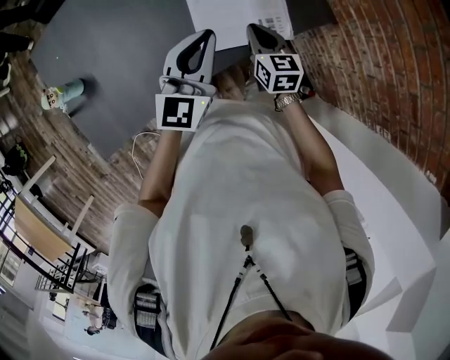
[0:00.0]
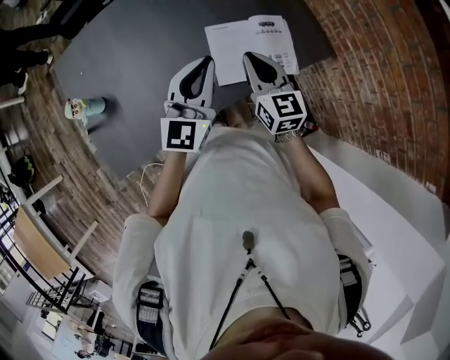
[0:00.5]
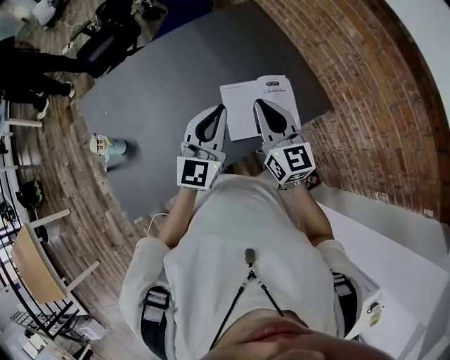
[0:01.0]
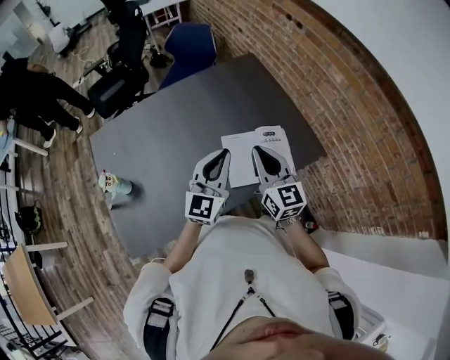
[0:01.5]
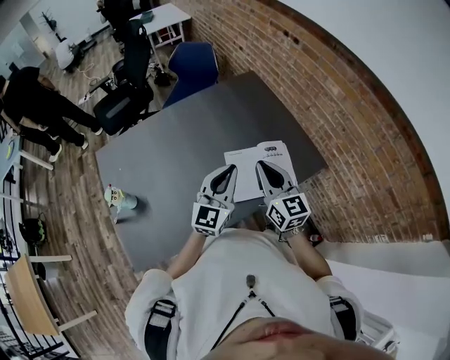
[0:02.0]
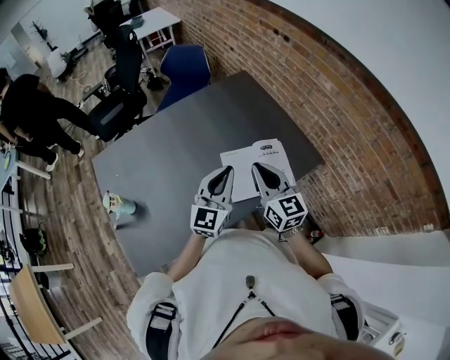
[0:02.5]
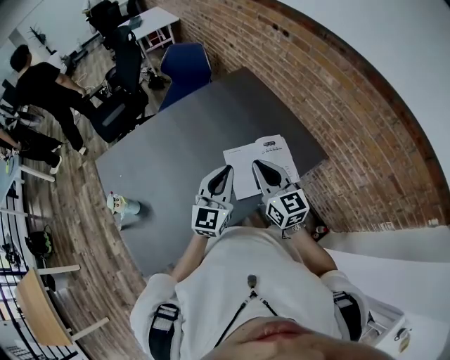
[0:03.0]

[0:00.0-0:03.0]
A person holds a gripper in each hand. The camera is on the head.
0:00.0 to 0:01.5: The left gripper travels upward and to the left by some 15 cm; the right gripper shifts approximately 25 cm upward, and swivels about 30 degrees.
0:01.5 to 0:03.0: The grippers stay close to where they were, moving slightly.

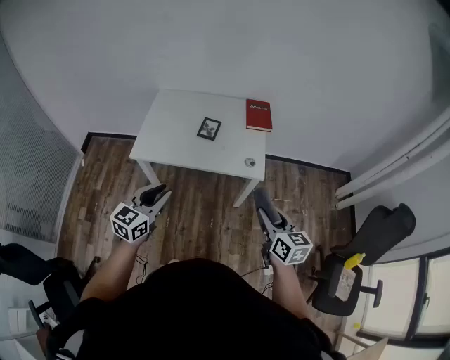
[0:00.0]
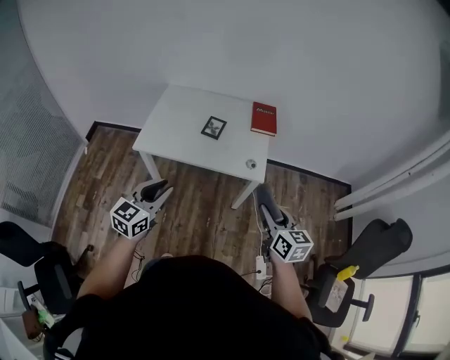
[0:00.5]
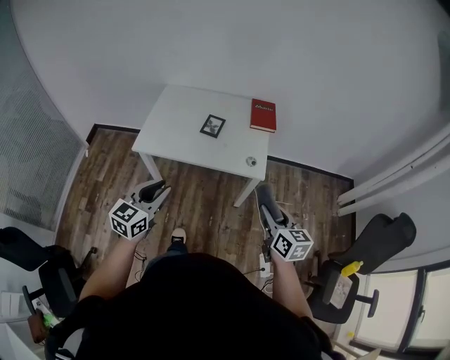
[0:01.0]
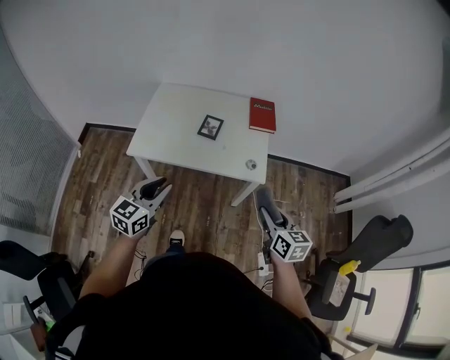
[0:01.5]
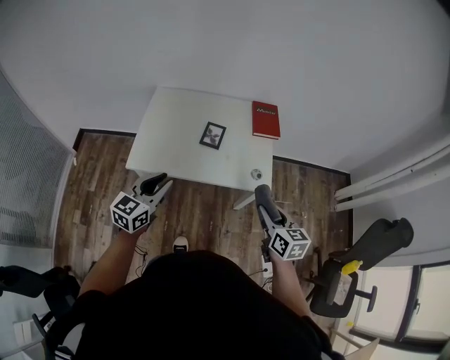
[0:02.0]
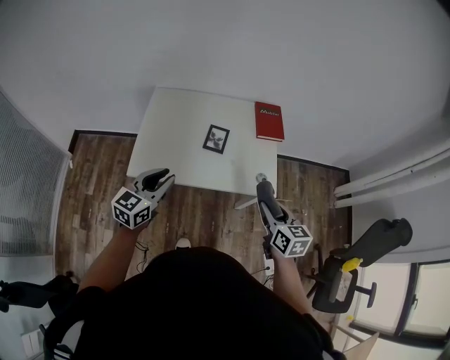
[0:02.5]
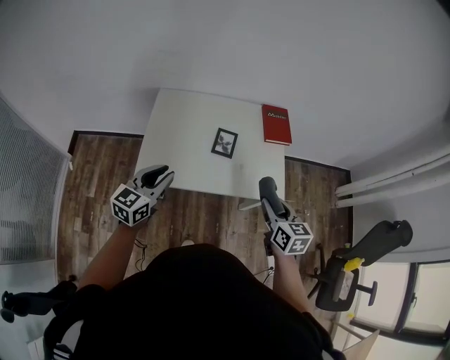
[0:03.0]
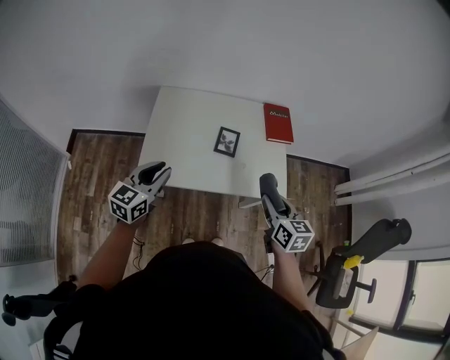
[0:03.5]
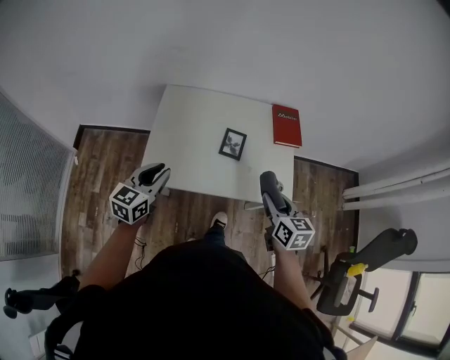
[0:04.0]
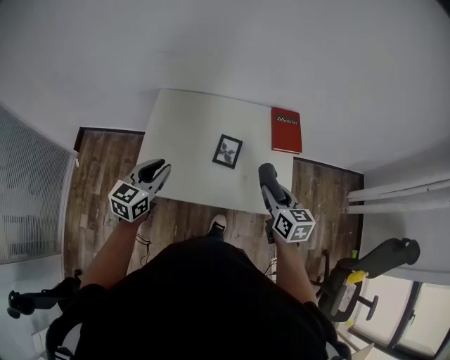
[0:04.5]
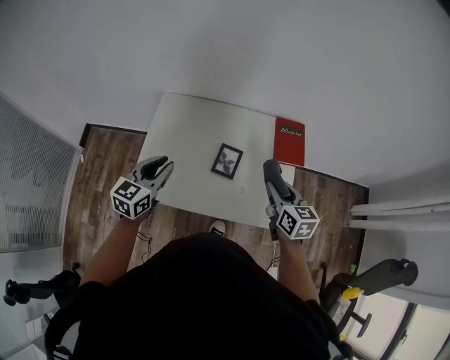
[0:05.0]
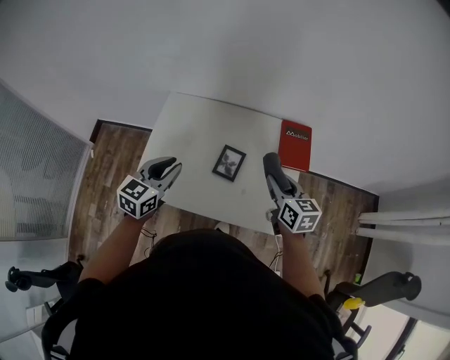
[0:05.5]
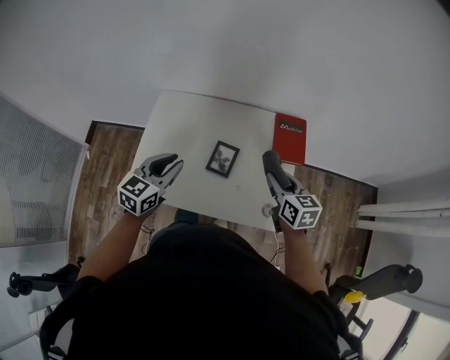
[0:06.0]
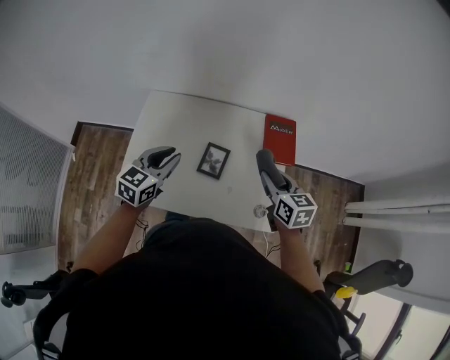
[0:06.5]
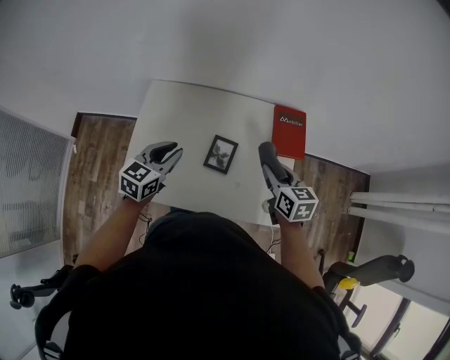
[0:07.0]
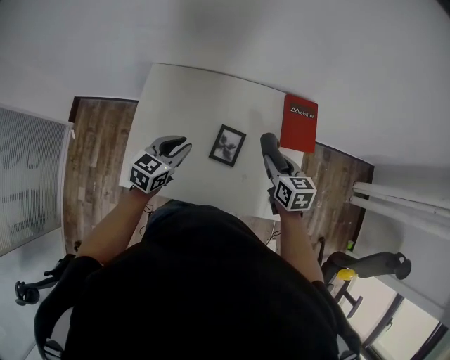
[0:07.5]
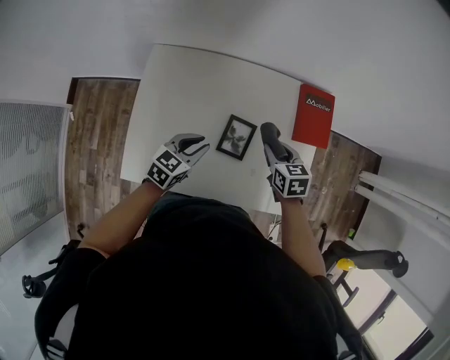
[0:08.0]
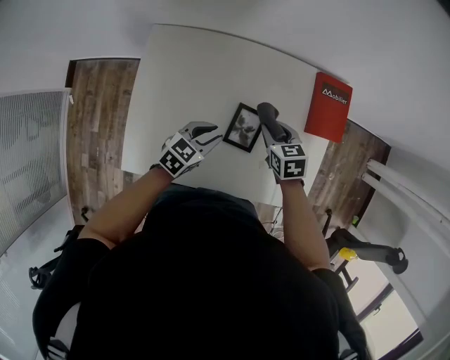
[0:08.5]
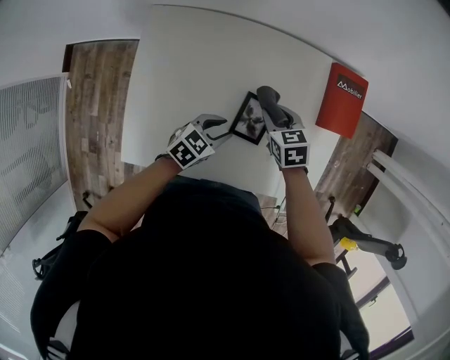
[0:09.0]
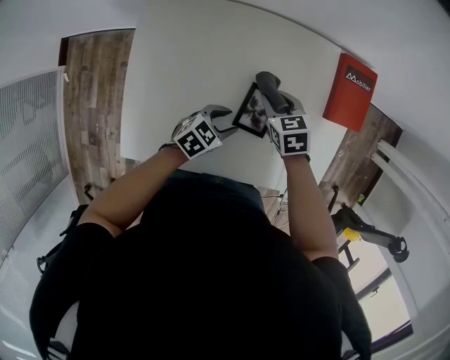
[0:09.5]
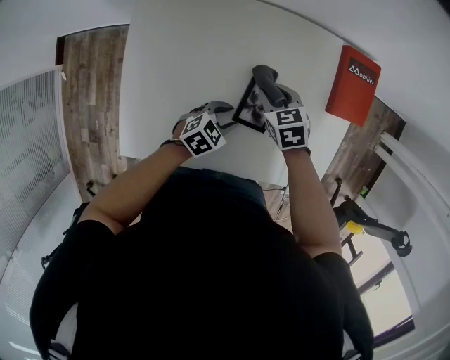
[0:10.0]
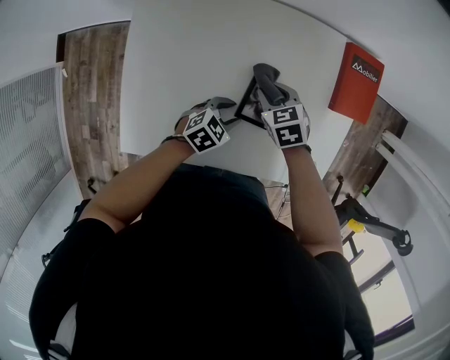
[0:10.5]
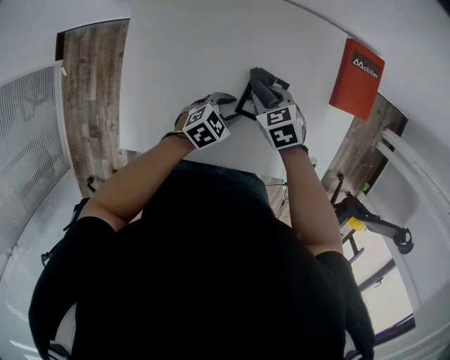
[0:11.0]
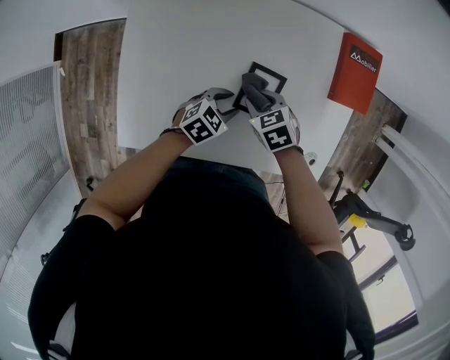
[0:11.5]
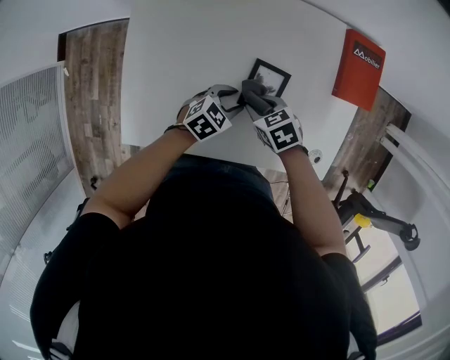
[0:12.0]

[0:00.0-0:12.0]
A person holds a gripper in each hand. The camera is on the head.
0:00.0 to 0:02.0: The left gripper heads forward, covering approximately 15 cm. Meanwhile the right gripper moves forward and to the left, roughly 15 cm.
0:02.0 to 0:04.0: The left gripper travels to the left and forward by roughly 20 cm, while the right gripper goes some 15 cm forward and to the left.
0:04.0 to 0:06.0: The grippers both shift forward and to the right by roughly 20 cm.
0:06.0 to 0:08.0: The right gripper moves downward, forward and to the left, about 20 cm, and changes its angle by some 20 degrees. The left gripper shifts some 20 cm downward and forward, and rotates approximately 20 degrees.
0:08.0 to 0:10.0: The left gripper is displaced downward by roughly 15 cm, and rotates roughly 20 degrees. The right gripper is displaced downward and to the left by approximately 15 cm.
0:10.0 to 0:12.0: The right gripper moves approximately 10 cm.

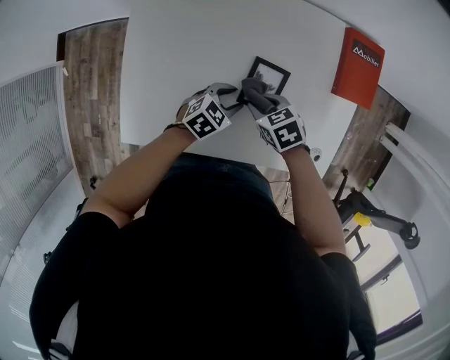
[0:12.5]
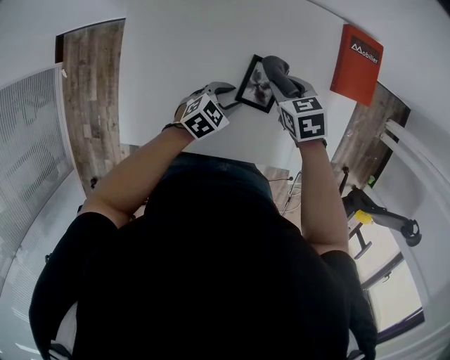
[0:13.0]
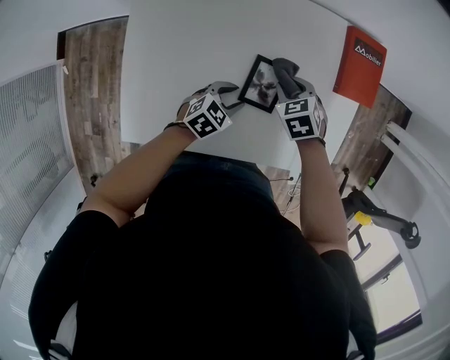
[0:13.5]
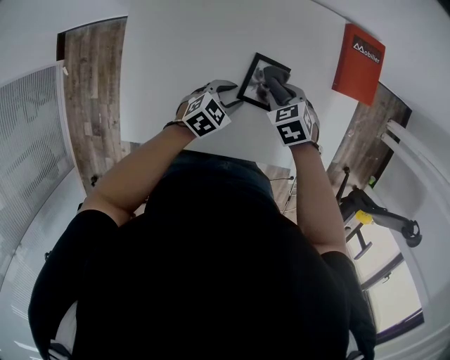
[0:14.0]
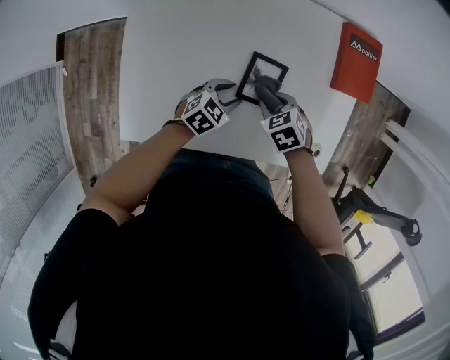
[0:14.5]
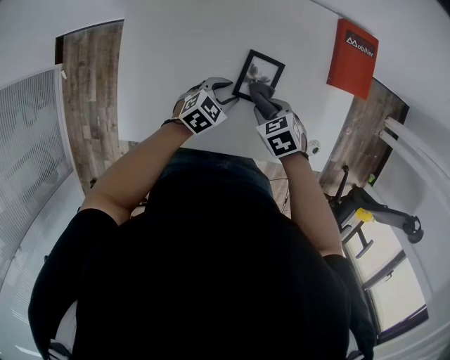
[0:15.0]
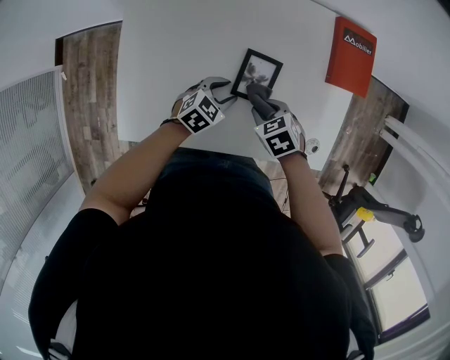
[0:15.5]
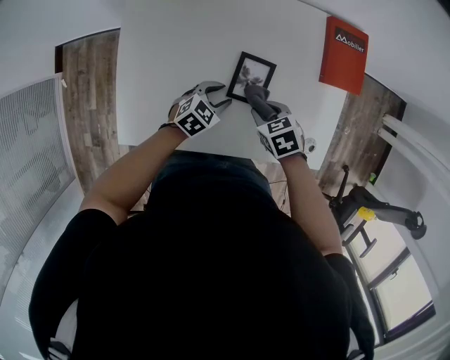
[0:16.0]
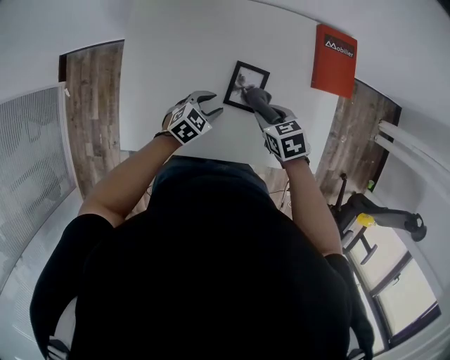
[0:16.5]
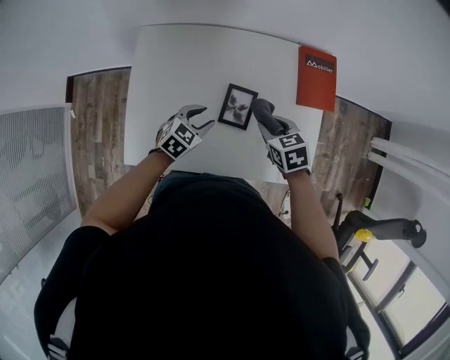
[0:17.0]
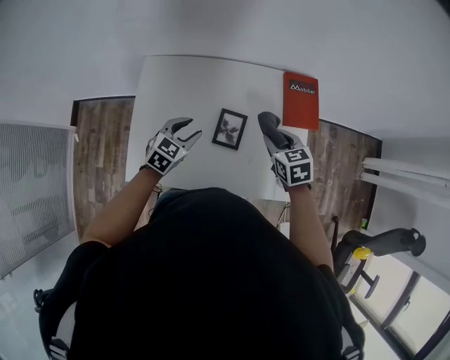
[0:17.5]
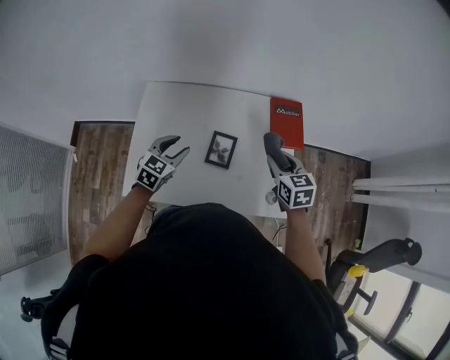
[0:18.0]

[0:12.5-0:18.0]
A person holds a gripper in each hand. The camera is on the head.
0:14.5 to 0:16.0: The grippers stay close to where they were, moving slightly.
0:16.0 to 0:18.0: Both grippers move upward, about 25 cm. The right gripper swivels approximately 40 degrees. Meanwhile the left gripper changes its angle by some 30 degrees.

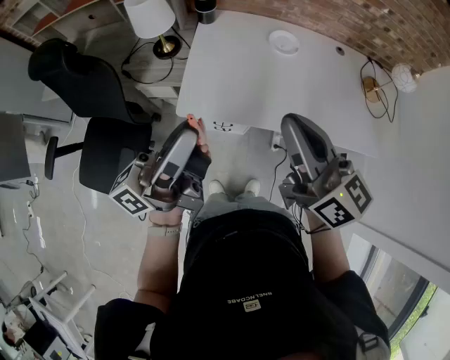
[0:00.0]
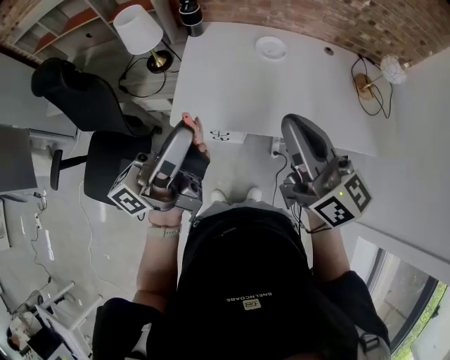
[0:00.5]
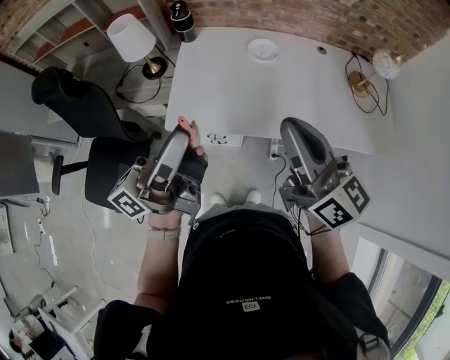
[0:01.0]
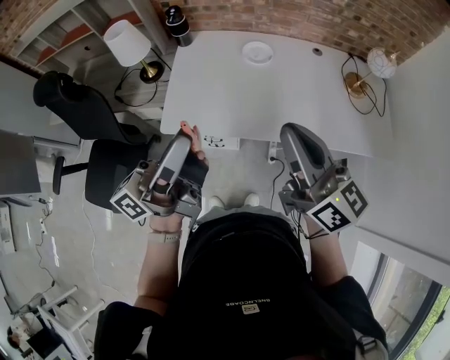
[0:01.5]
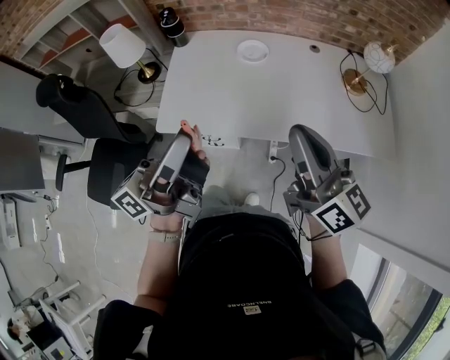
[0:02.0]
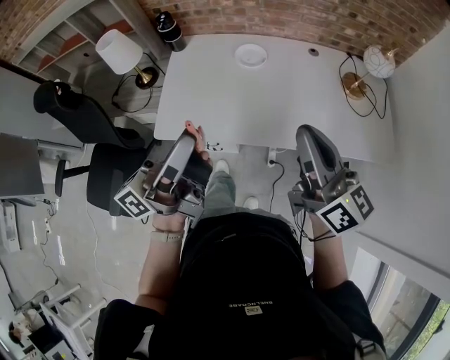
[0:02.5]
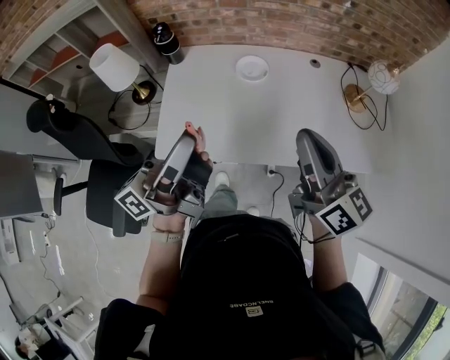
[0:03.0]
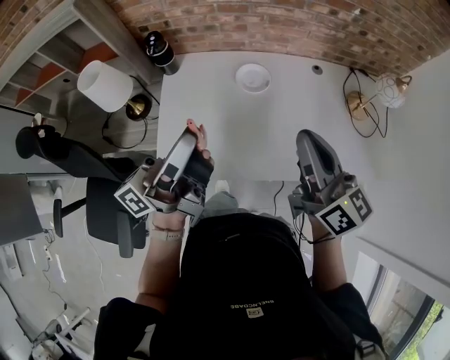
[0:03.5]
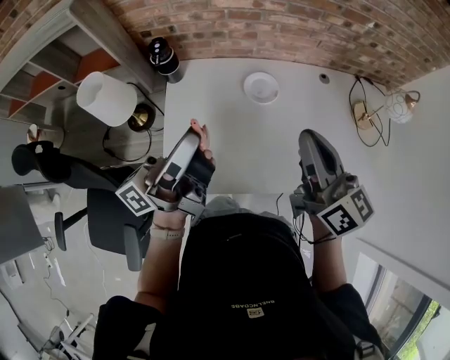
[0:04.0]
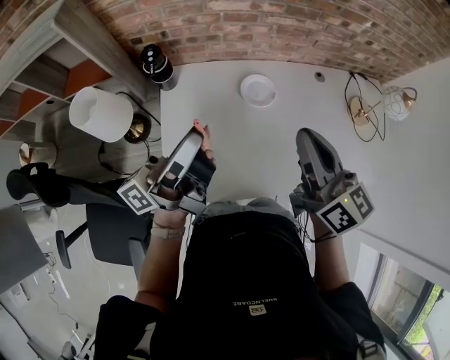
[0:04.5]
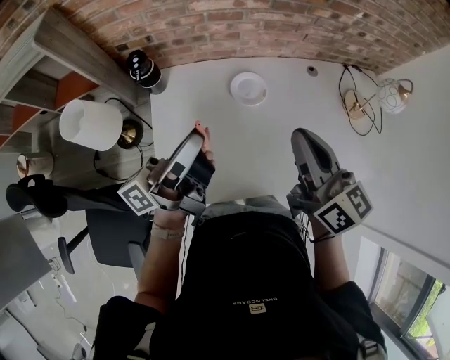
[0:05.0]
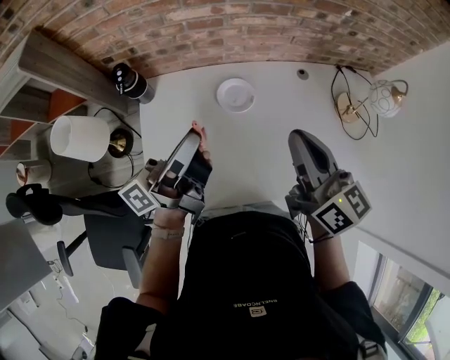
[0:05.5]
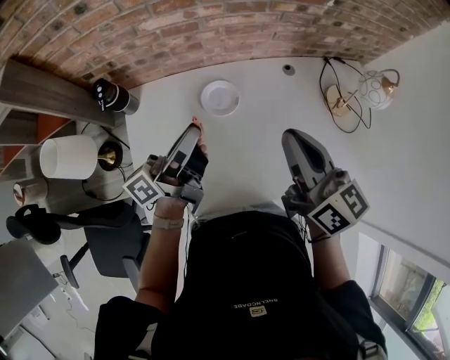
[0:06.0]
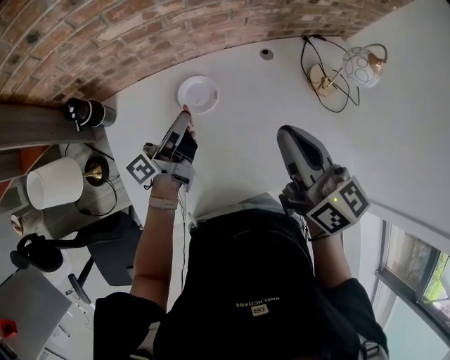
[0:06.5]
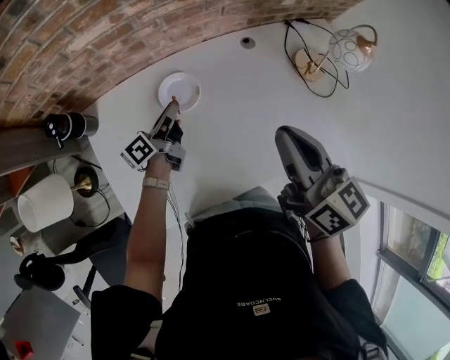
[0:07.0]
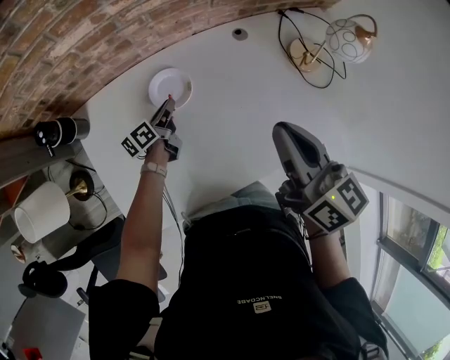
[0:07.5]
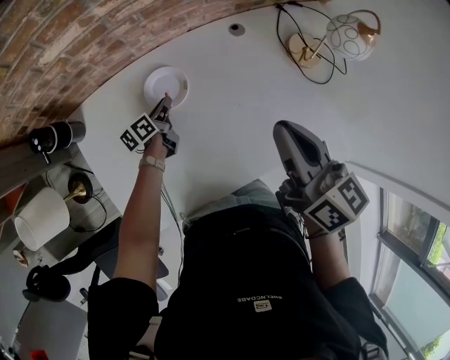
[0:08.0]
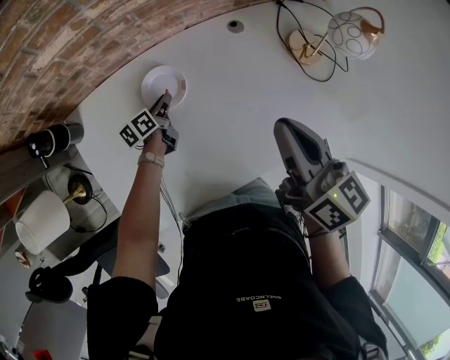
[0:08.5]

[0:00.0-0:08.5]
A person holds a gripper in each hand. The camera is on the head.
0:00.0 to 0:02.0: Both grippers move to the right, approximately 20 cm.
0:02.0 to 0:04.0: Both grippers move forward and to the left, roughly 25 cm.
0:04.0 to 0:06.5: The left gripper is displaced forward, downward and to the right by approximately 30 cm, and rotates about 30 degrees, while the right gripper travels to the right and forward by approximately 15 cm.
0:06.5 to 0:08.5: The right gripper is displaced to the right and downward by roughly 5 cm; the left gripper goes about 25 cm downward, and tips its fingers downward by about 40 degrees.
